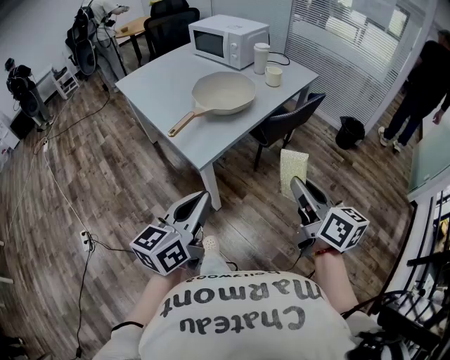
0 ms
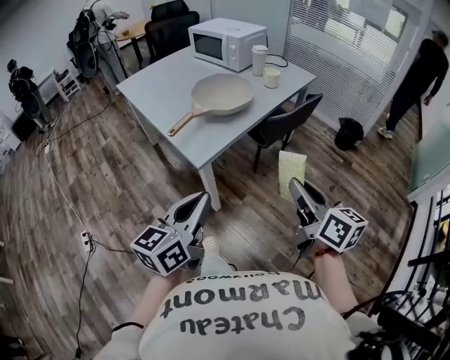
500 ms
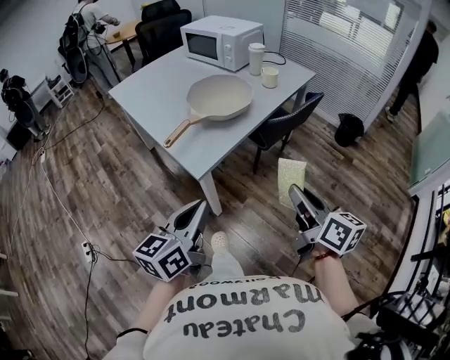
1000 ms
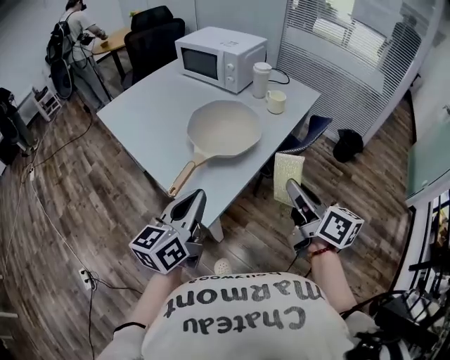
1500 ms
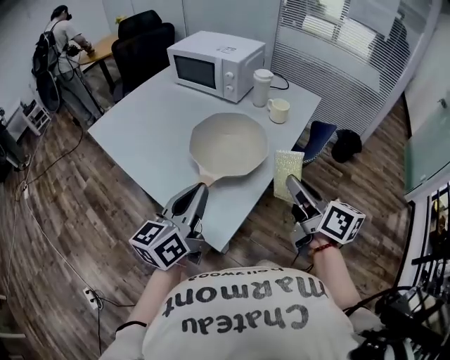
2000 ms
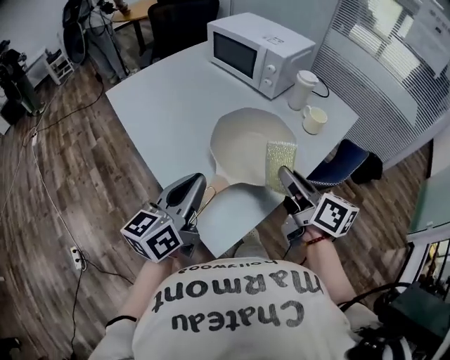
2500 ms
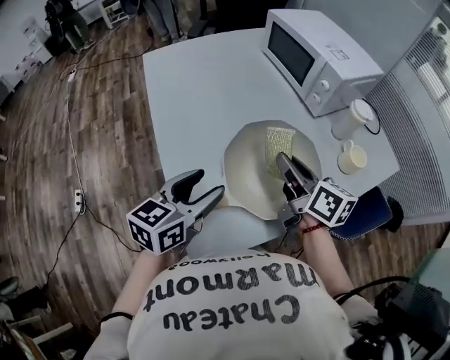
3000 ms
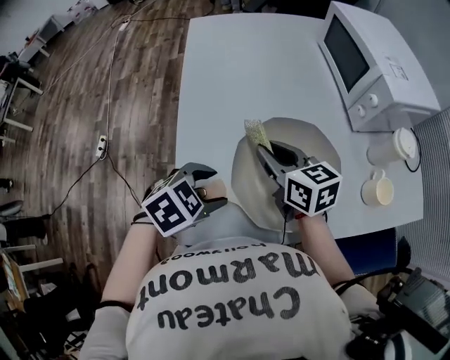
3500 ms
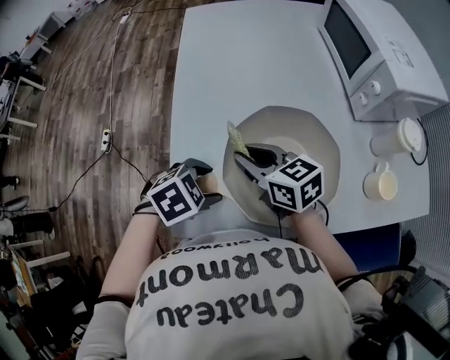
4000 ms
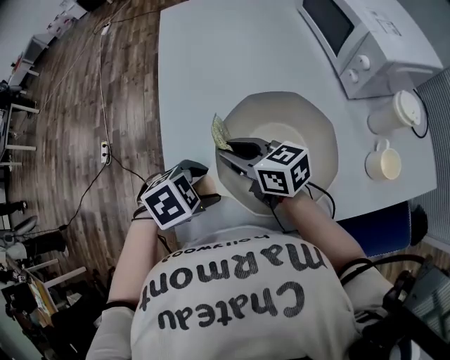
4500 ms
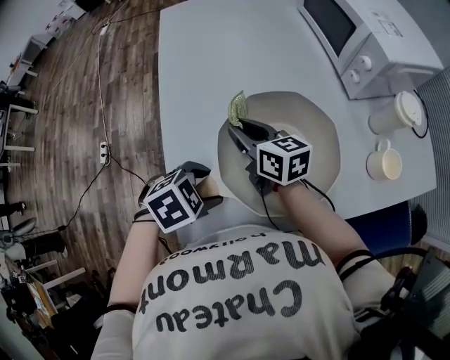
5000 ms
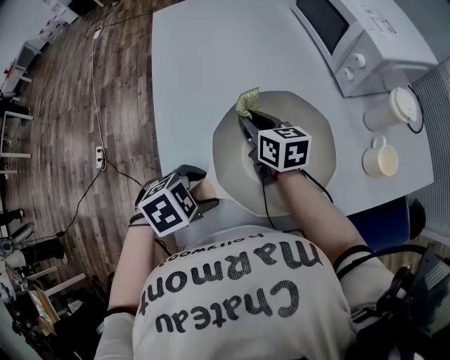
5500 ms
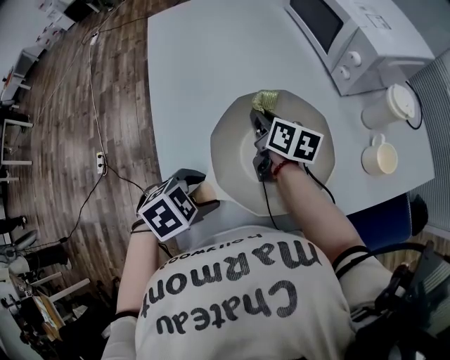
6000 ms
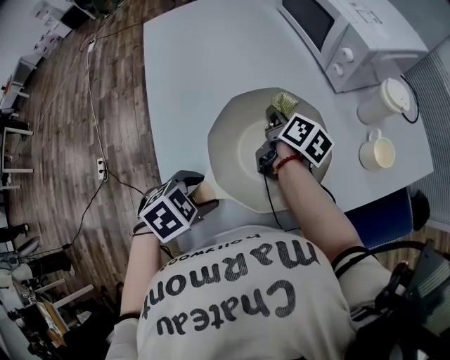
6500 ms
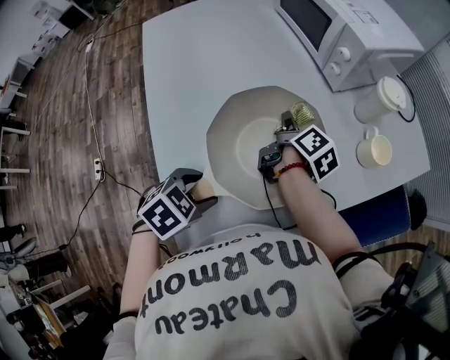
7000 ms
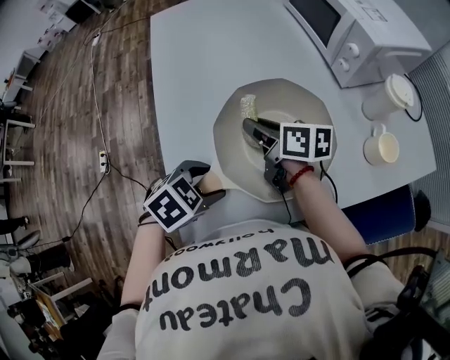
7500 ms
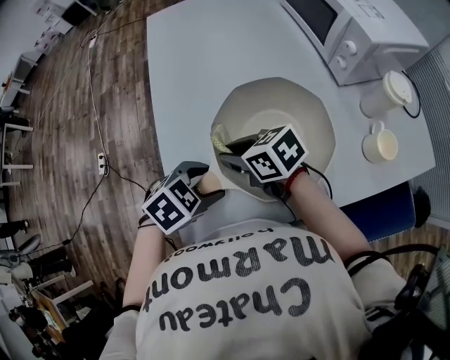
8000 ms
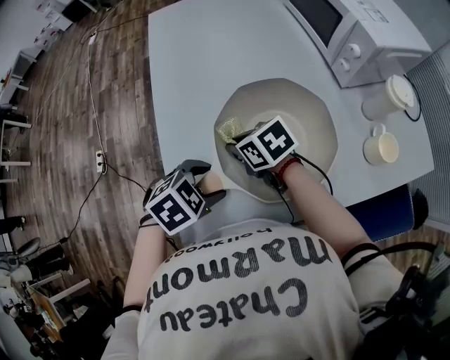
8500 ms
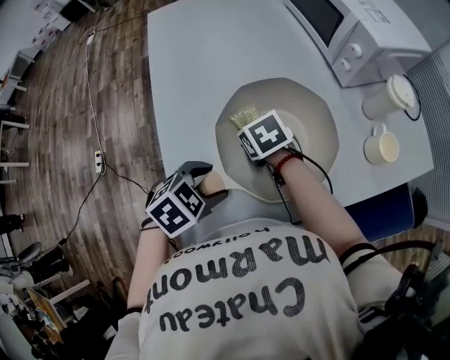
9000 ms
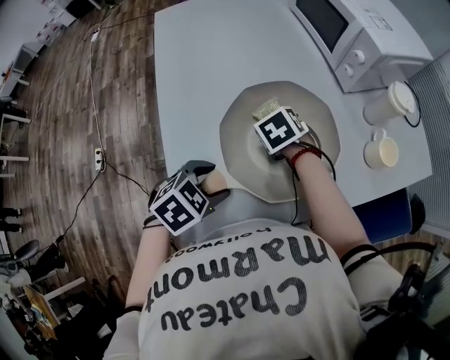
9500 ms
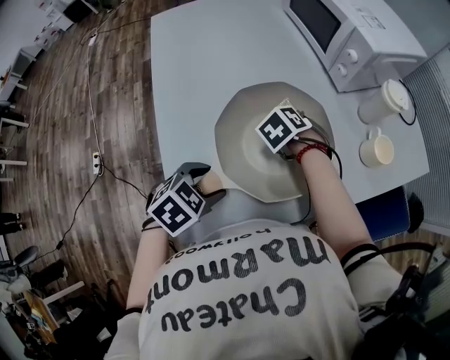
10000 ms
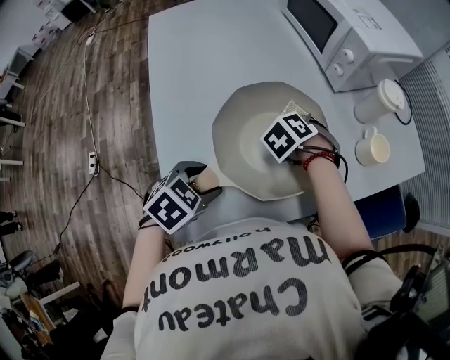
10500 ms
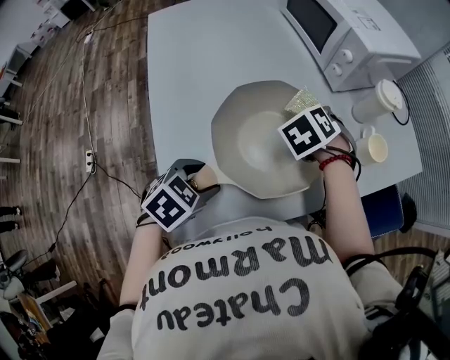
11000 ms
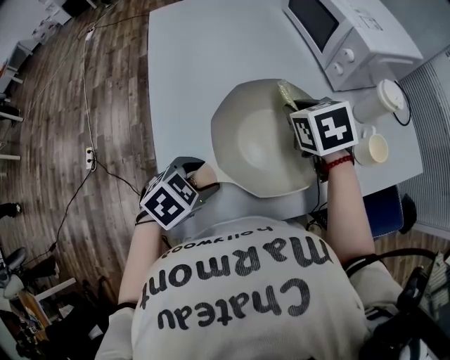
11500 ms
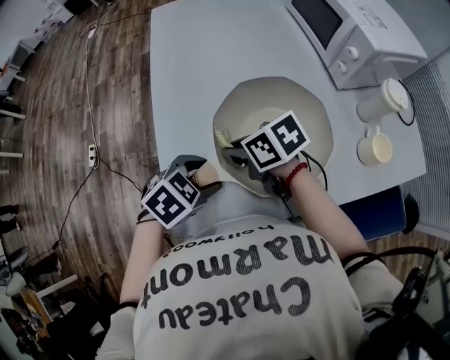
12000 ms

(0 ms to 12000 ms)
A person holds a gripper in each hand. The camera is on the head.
0 ms - 2000 ms: Both grippers travel together forward, roughly 30 cm.
2000 ms - 4000 ms: The left gripper heads downward, covering some 20 cm, tilts its fingers some 70 degrees downward, and opens; the right gripper shifts by about 35 cm, and rotates roughly 80 degrees.
4000 ms - 6000 ms: The right gripper moves some 15 cm, and rotates some 50 degrees.
6000 ms - 8000 ms: The right gripper moves about 15 cm, and turns by approximately 50 degrees.
8000 ms - 10000 ms: The right gripper shifts by approximately 20 cm, and points its fingers about 40 degrees further downward.
10000 ms - 12000 ms: The right gripper moves some 20 cm, and tilts its fingers about 40 degrees upward.

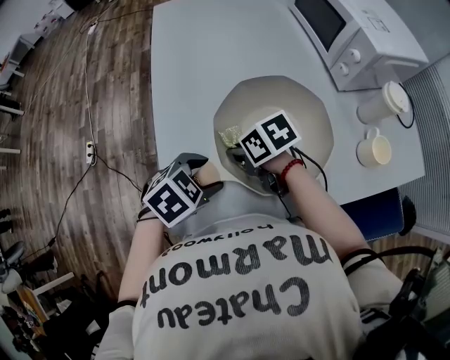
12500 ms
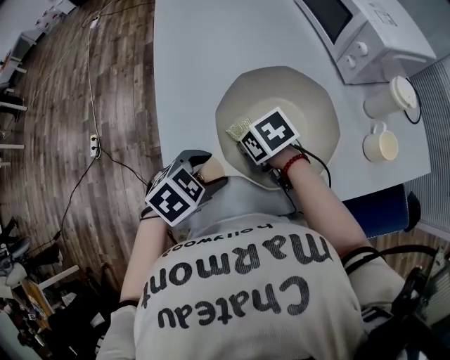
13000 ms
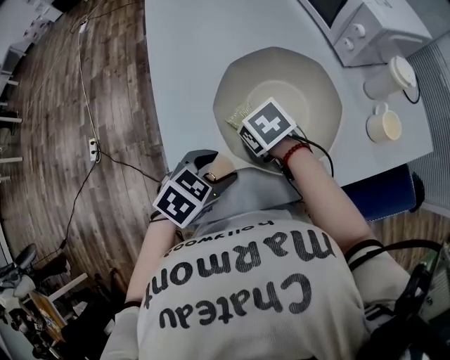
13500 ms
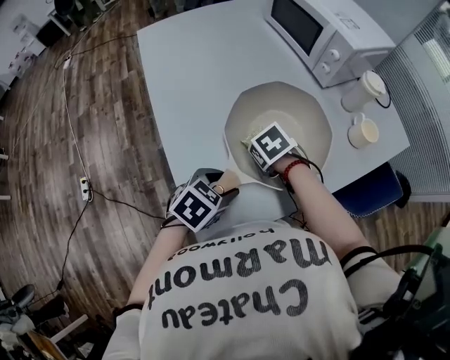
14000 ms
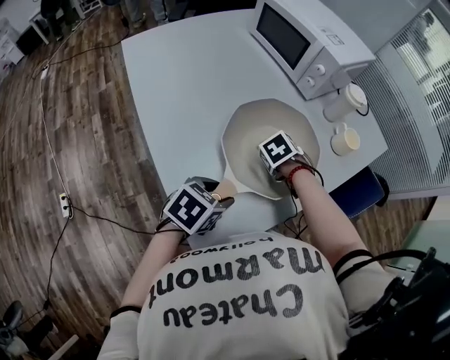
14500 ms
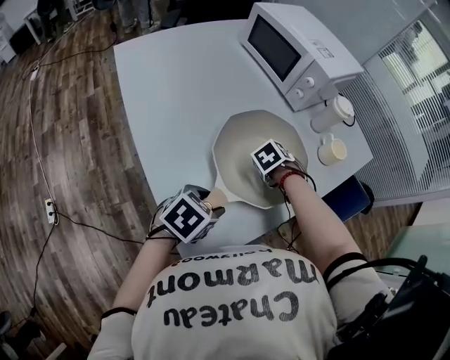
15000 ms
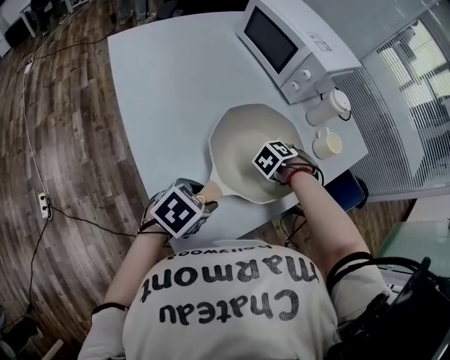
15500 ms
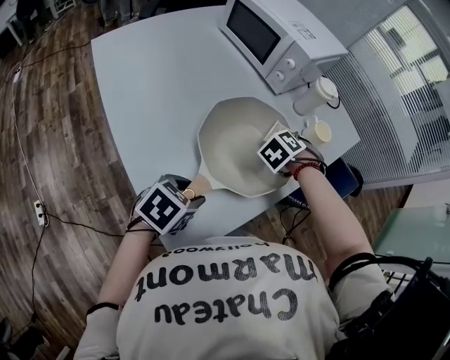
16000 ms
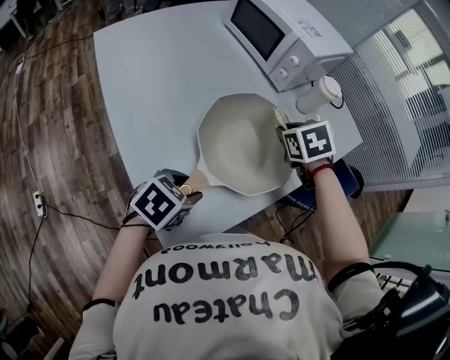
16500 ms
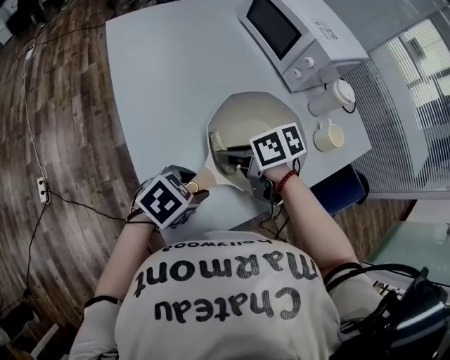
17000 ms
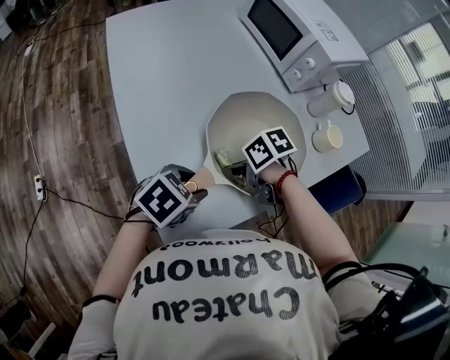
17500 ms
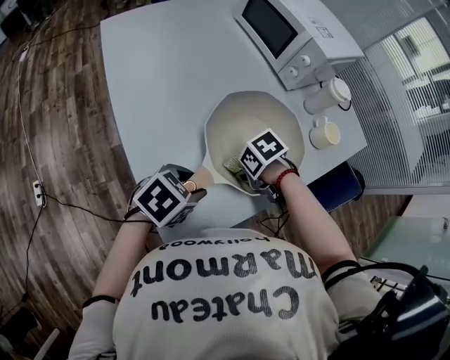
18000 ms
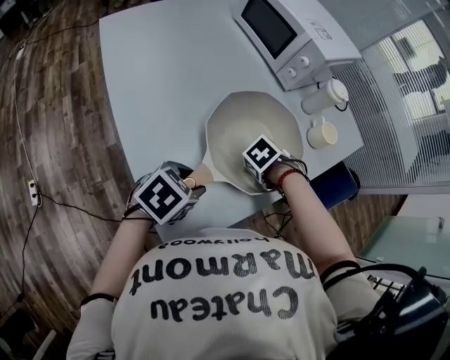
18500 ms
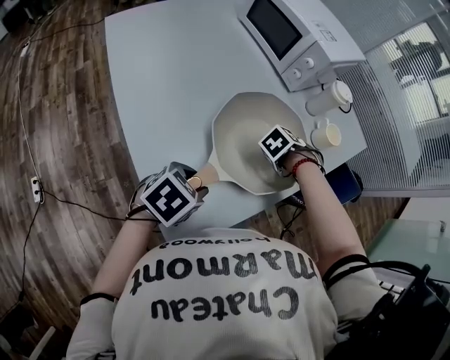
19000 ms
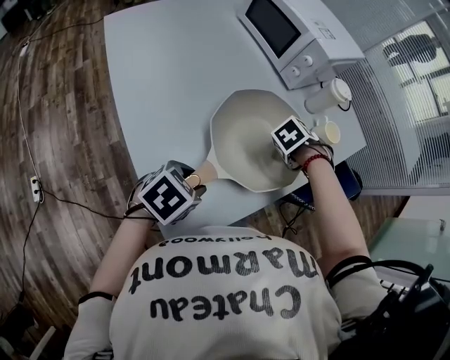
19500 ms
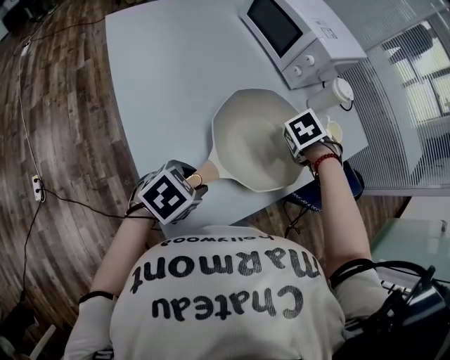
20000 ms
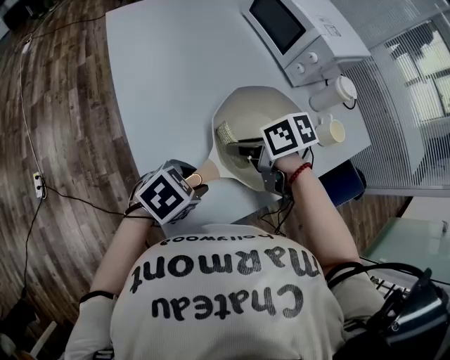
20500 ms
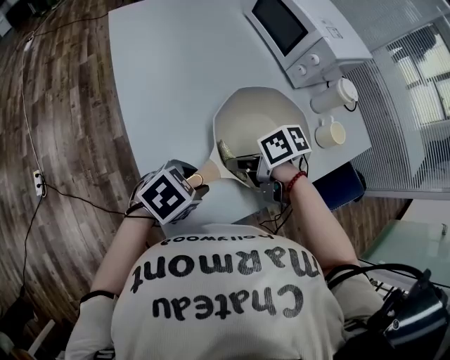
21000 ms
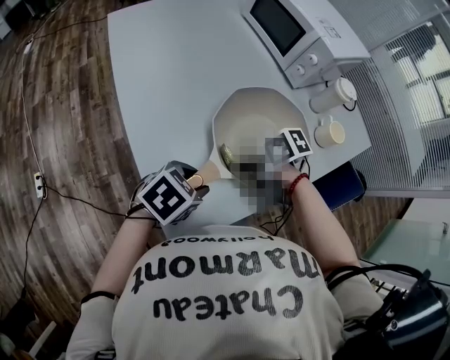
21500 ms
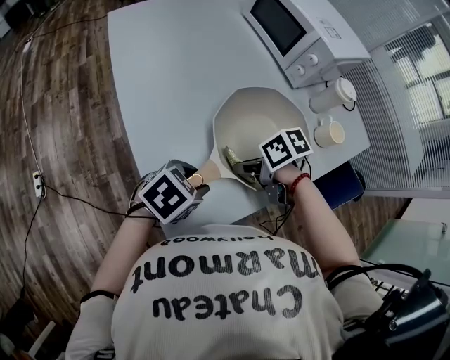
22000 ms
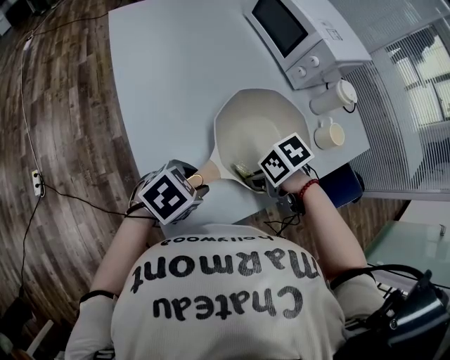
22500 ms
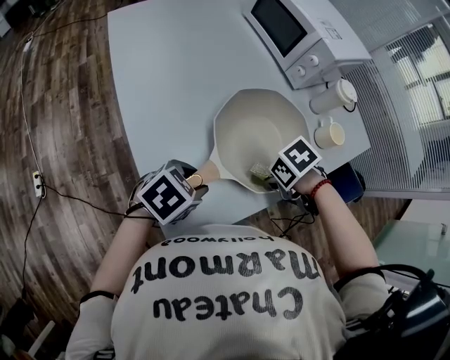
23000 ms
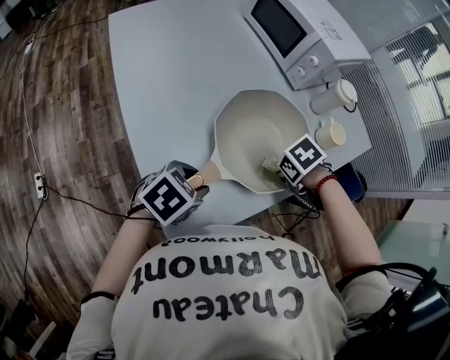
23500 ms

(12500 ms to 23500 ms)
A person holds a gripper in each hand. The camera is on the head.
12500 ms - 14500 ms: The right gripper shifts by some 15 cm, and tilts its fingers roughly 40 degrees downward.
14500 ms - 16000 ms: The right gripper shifts by approximately 15 cm, and rotates roughly 30 degrees.
16000 ms - 18000 ms: The right gripper changes place by approximately 20 cm, and turns by about 50 degrees.
18000 ms - 20000 ms: The right gripper shifts by some 20 cm, and turns by about 30 degrees.
20000 ms - 21500 ms: The right gripper changes place by roughly 20 cm, and points its fingers some 30 degrees further upward.
21500 ms - 23500 ms: The right gripper shifts by roughly 15 cm, and tilts its fingers about 40 degrees downward.

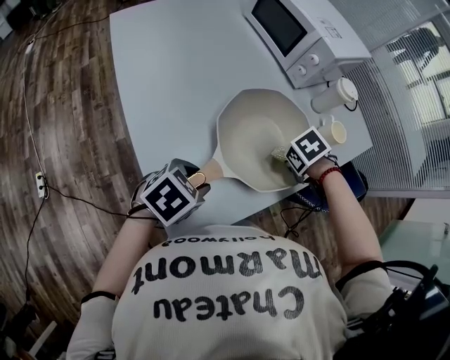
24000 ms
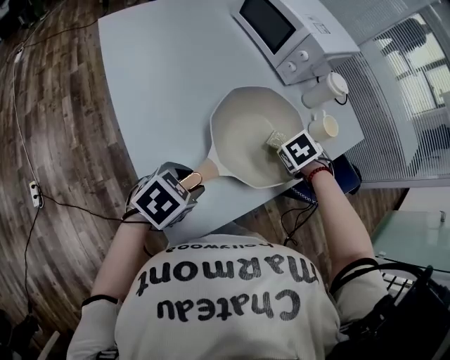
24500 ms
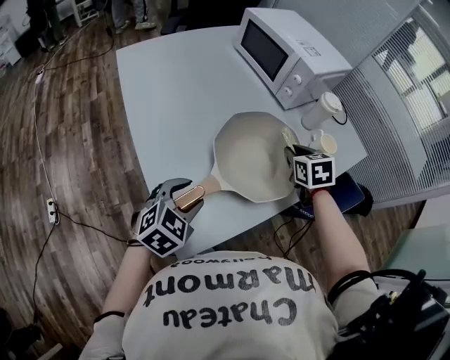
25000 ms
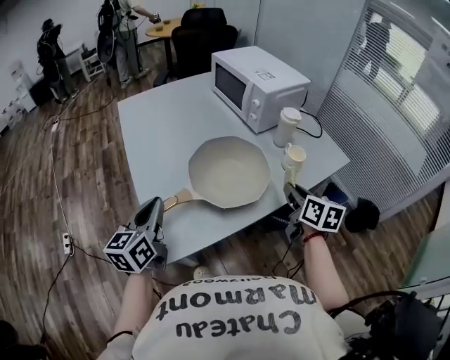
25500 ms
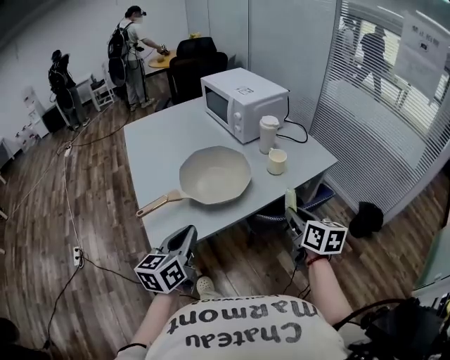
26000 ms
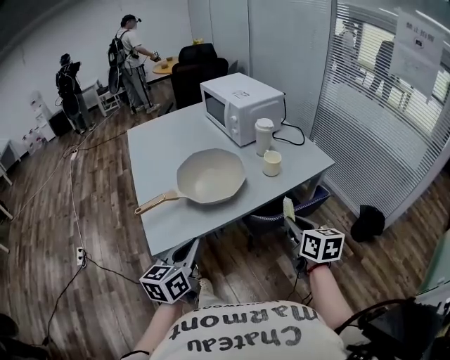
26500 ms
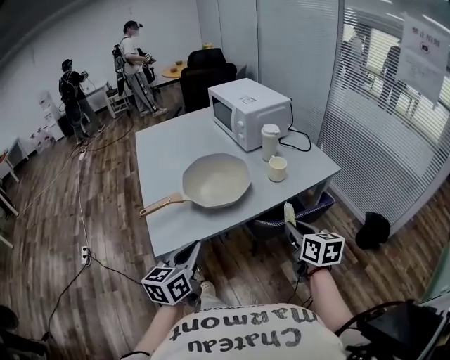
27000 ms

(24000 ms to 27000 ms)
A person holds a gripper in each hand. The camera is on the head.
24000 ms - 25500 ms: Both grippers travel together upward, about 15 cm. The left gripper points its fingers roughly 40 degrees further upward, and closes, while the right gripper tips its fingers upward by about 60 degrees.
25500 ms - 27000 ms: The right gripper travels backward and to the right by some 20 cm; the left gripper travels to the right and backward by about 25 cm.

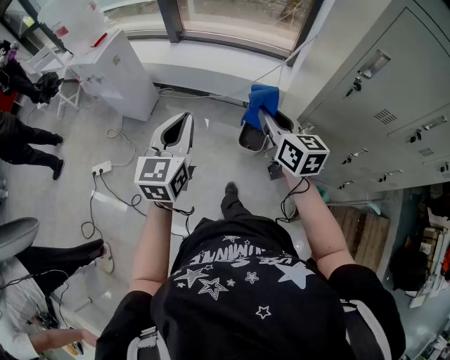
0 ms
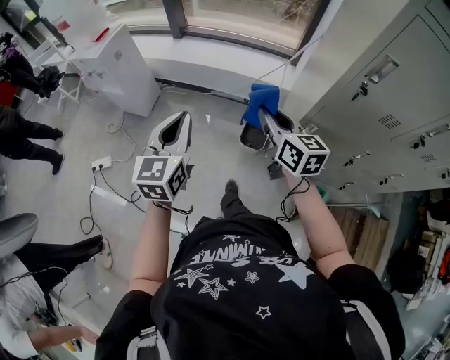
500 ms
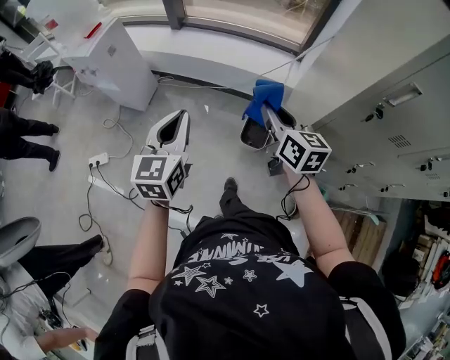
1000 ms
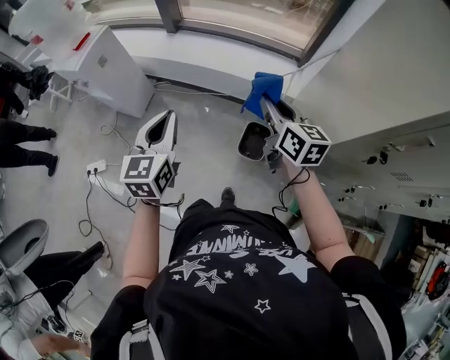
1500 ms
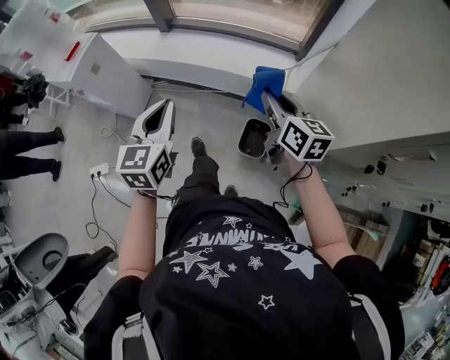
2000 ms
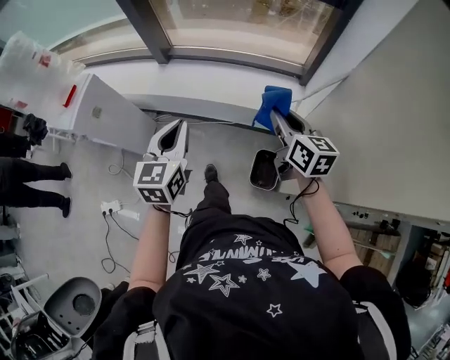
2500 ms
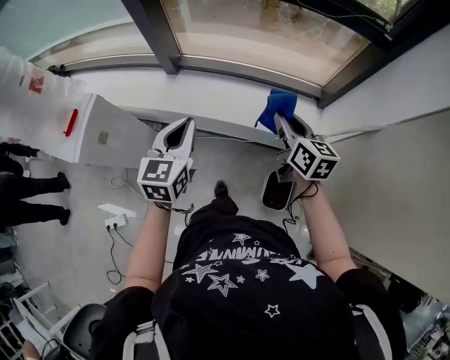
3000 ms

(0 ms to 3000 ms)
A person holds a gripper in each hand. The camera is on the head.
0 ms - 1500 ms: Both grippers travel together forward, approximately 20 cm.
1500 ms - 3000 ms: Both grippers move forward, some 35 cm.
